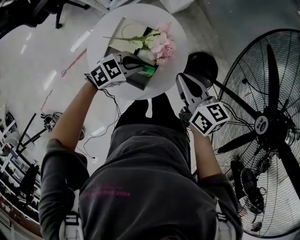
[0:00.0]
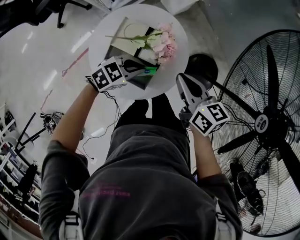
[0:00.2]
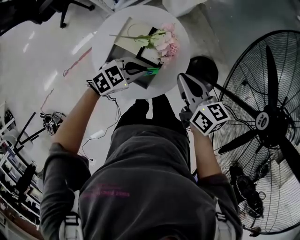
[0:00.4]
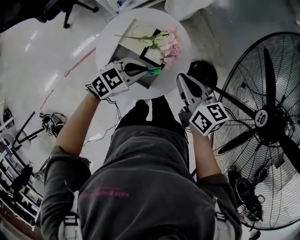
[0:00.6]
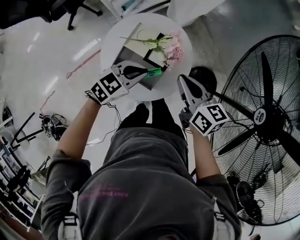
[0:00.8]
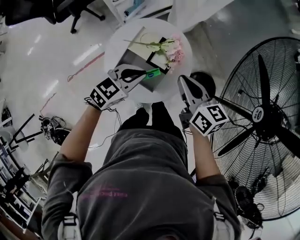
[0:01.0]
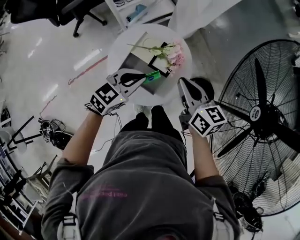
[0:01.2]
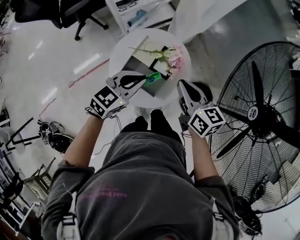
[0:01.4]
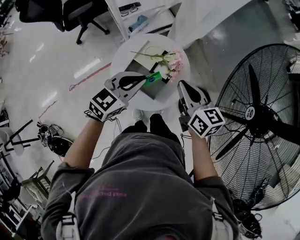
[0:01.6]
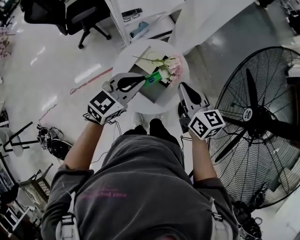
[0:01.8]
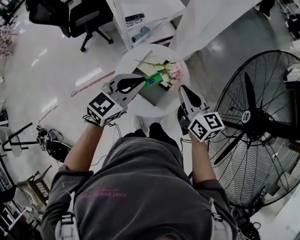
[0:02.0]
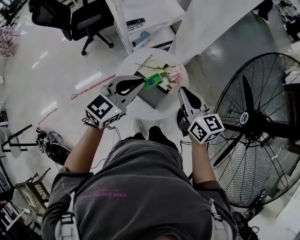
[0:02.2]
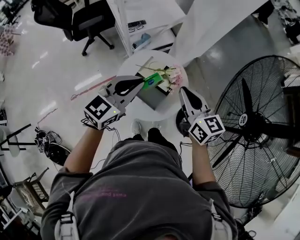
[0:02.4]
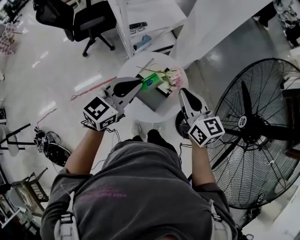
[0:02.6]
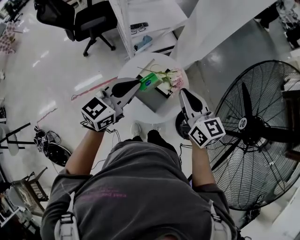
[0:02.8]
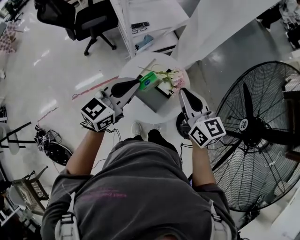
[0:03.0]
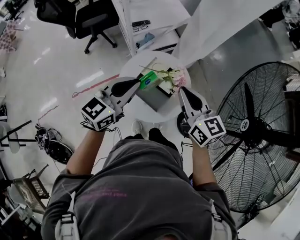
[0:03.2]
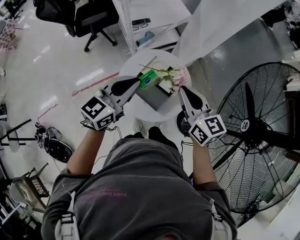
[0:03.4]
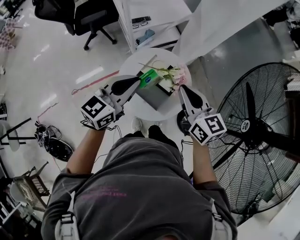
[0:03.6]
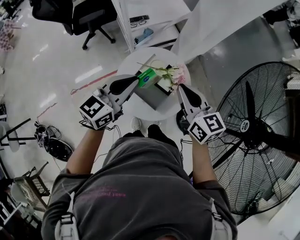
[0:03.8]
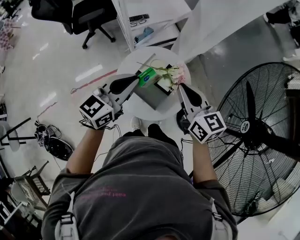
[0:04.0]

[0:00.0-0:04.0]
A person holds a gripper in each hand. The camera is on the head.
0:00.0 to 0:01.4: The right gripper goes about 10 cm upward. Meanwhile the left gripper moves upward, about 20 cm, and rotates approximately 40 degrees.
0:01.4 to 0:02.6: The grippers both shift upward by some 10 cm. The left gripper changes its angle by roughly 20 degrees.
0:02.6 to 0:04.0: The grippers make only small movements.

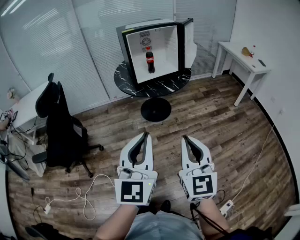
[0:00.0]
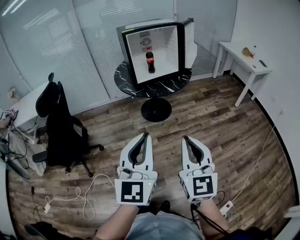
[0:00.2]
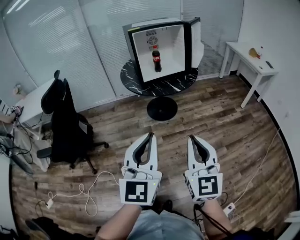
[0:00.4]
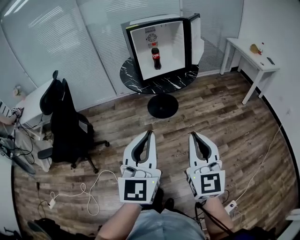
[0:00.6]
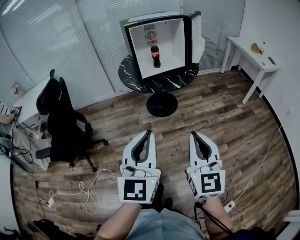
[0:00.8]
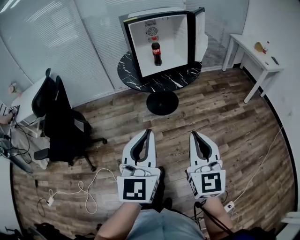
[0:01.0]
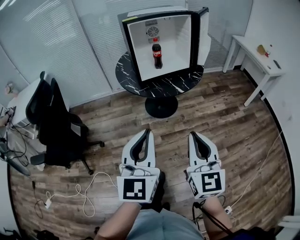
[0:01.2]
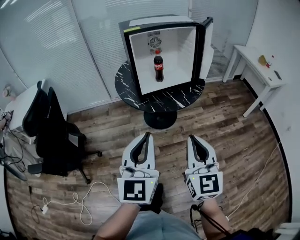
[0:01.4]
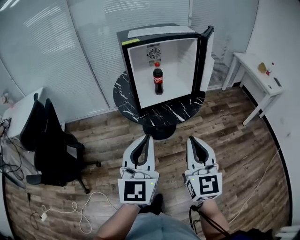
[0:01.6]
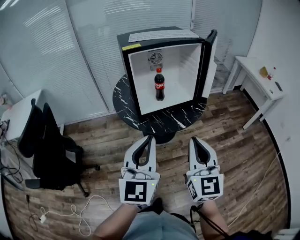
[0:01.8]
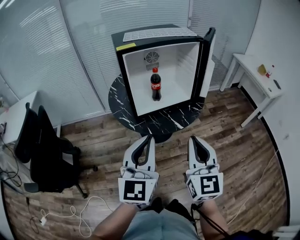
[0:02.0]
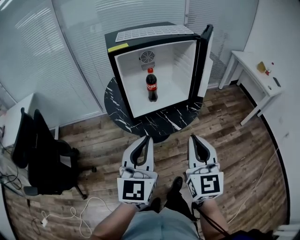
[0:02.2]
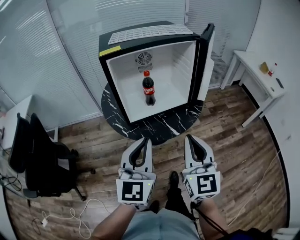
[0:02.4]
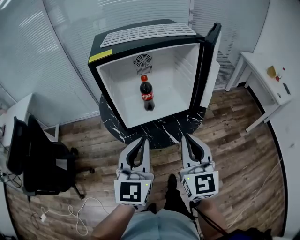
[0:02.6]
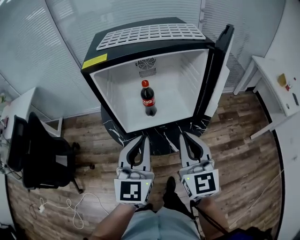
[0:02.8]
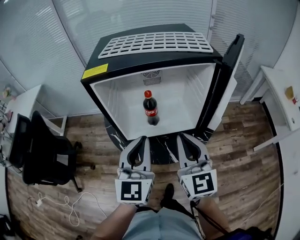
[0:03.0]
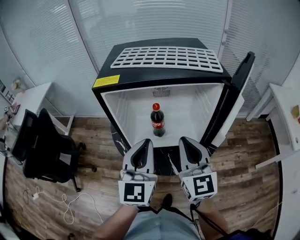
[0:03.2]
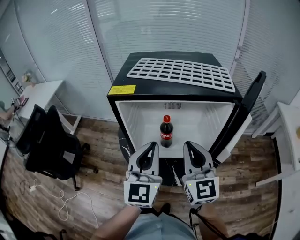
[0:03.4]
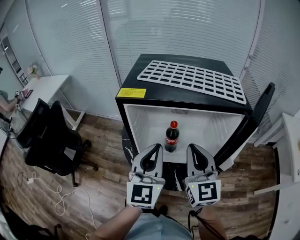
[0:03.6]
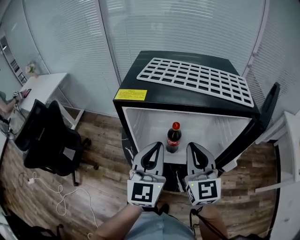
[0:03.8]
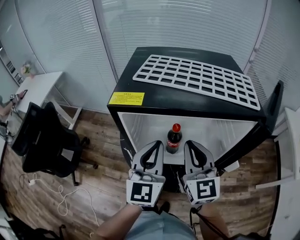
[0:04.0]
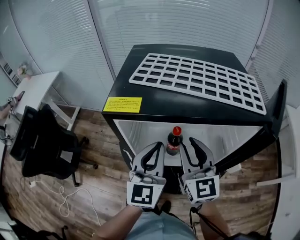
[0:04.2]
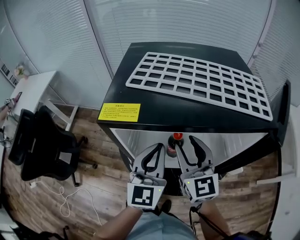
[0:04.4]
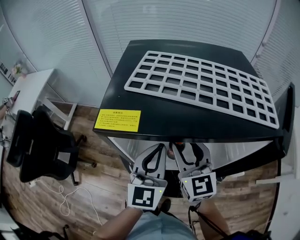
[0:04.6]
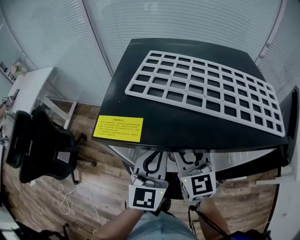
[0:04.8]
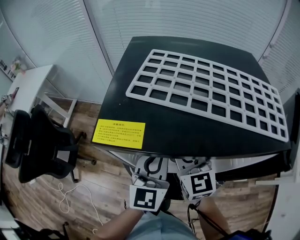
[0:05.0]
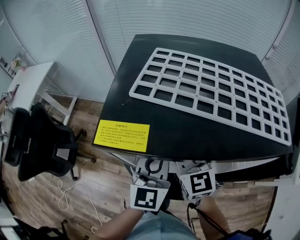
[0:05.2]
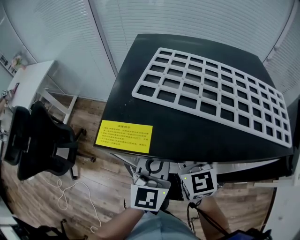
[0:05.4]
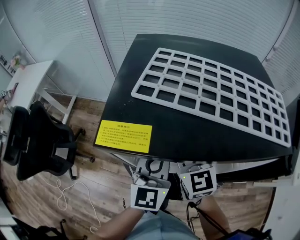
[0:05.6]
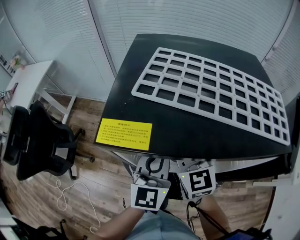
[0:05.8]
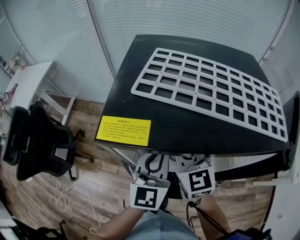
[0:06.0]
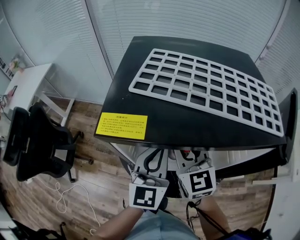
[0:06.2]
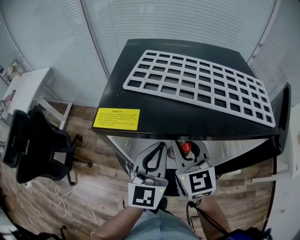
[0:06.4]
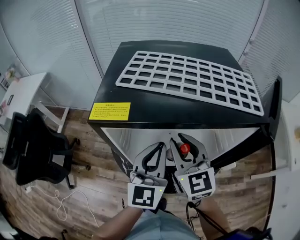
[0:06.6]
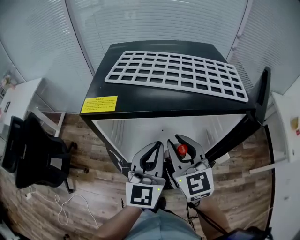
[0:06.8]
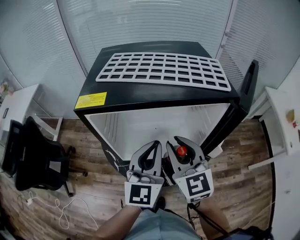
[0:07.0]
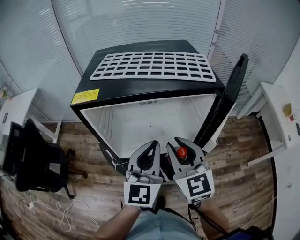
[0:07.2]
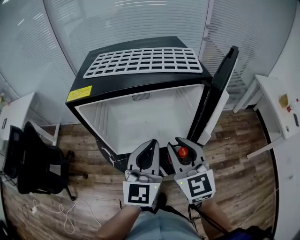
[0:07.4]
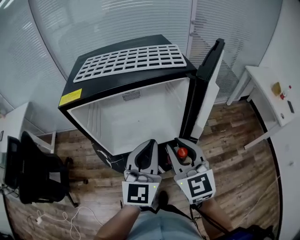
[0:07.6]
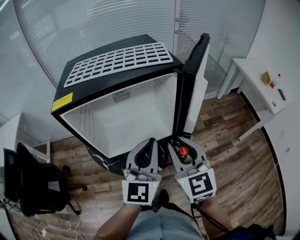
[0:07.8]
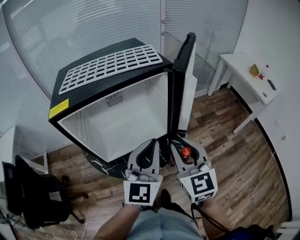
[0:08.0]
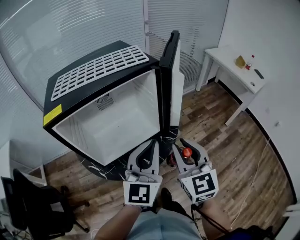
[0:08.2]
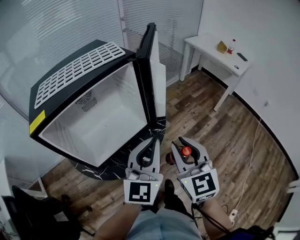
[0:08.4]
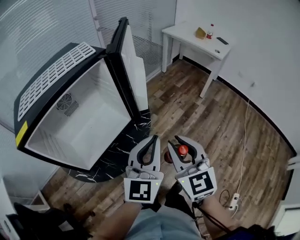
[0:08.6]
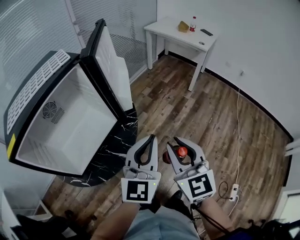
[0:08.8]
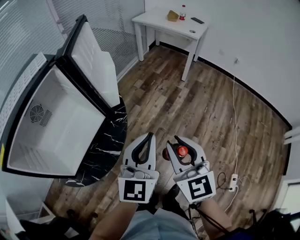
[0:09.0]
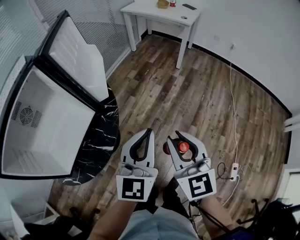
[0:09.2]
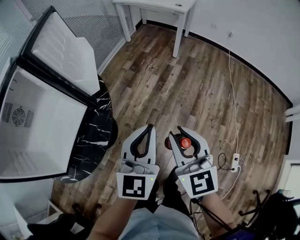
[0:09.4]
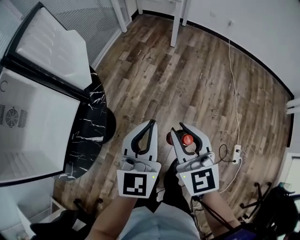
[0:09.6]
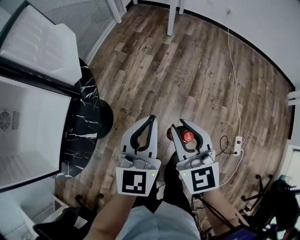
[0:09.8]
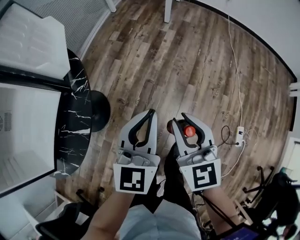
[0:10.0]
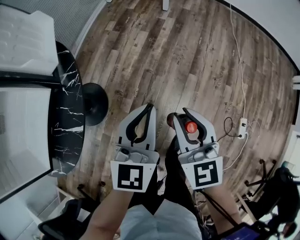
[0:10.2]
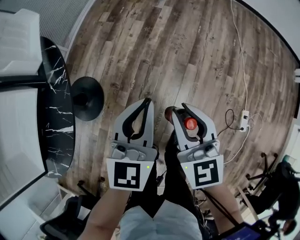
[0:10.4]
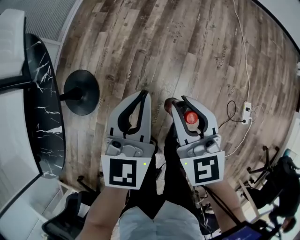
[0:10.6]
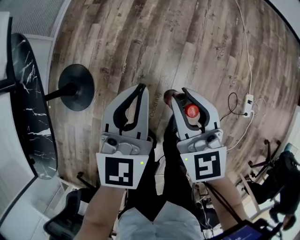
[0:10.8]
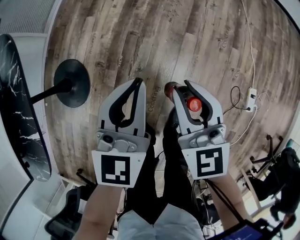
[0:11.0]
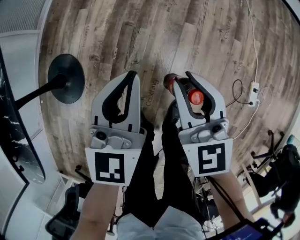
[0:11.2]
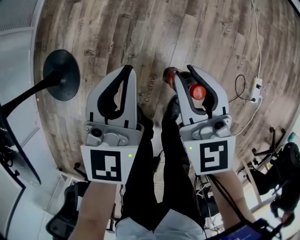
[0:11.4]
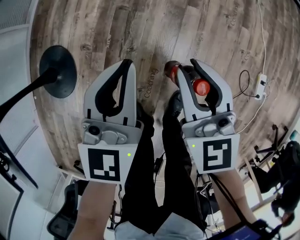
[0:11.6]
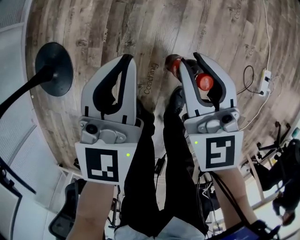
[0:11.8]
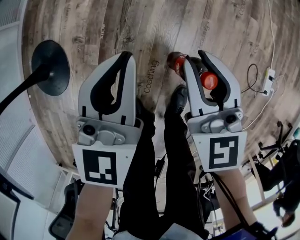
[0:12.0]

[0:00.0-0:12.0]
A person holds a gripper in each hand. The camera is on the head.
0:00.0 to 0:01.6: Both grippers travel together forward, roughly 30 cm.
0:01.6 to 0:03.0: The grippers both shift forward by about 30 cm.
0:03.0 to 0:04.4: Both grippers travel together forward, approximately 15 cm. The right gripper opens up.
0:04.4 to 0:06.0: The right gripper travels forward by about 5 cm.
0:06.0 to 0:07.6: Both grippers move backward and to the right, approximately 25 cm.
0:07.6 to 0:09.0: The right gripper ends up roughly 30 cm from where it was, and changes its angle by some 50 degrees. The left gripper changes place by approximately 25 cm, and rotates roughly 50 degrees.
0:09.0 to 0:10.4: The grippers both shift downward and to the right by approximately 30 cm. The left gripper rotates about 20 degrees.
0:10.4 to 0:12.0: The two grippers go about 35 cm downward.

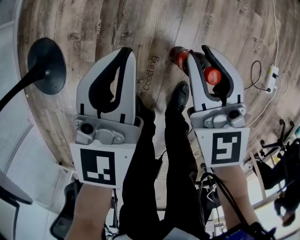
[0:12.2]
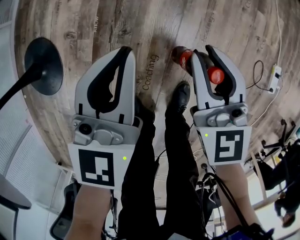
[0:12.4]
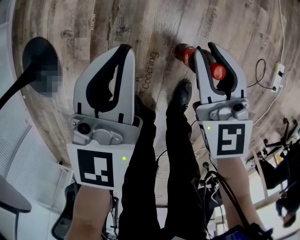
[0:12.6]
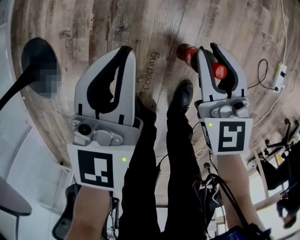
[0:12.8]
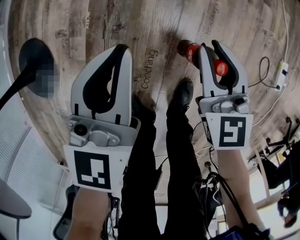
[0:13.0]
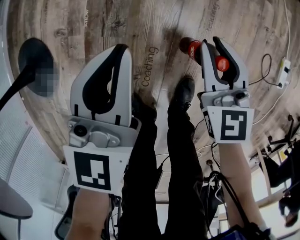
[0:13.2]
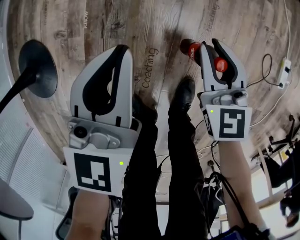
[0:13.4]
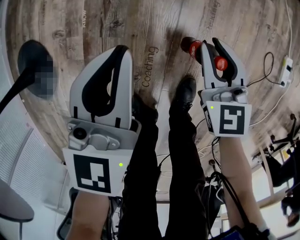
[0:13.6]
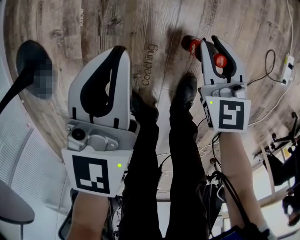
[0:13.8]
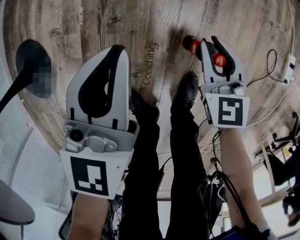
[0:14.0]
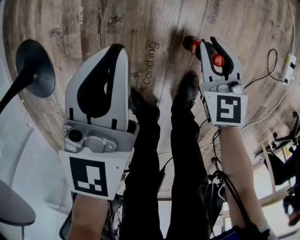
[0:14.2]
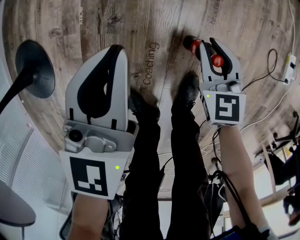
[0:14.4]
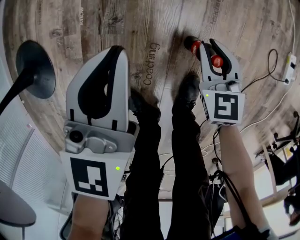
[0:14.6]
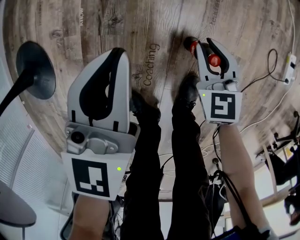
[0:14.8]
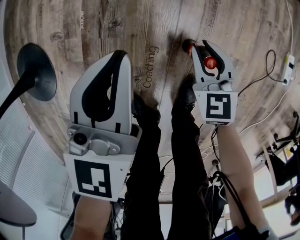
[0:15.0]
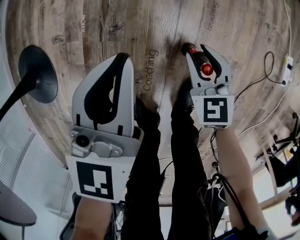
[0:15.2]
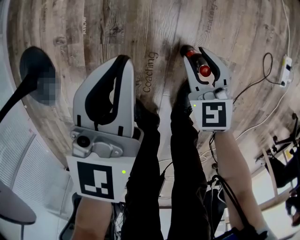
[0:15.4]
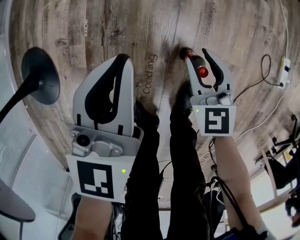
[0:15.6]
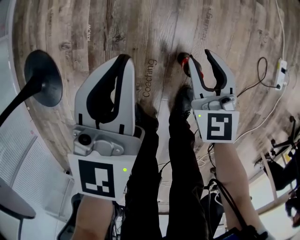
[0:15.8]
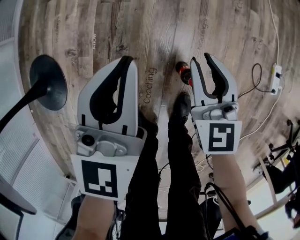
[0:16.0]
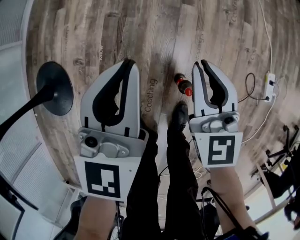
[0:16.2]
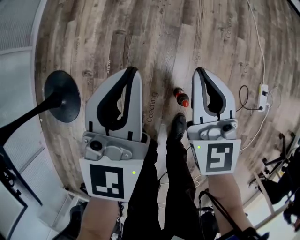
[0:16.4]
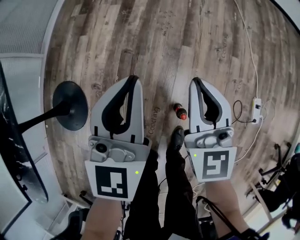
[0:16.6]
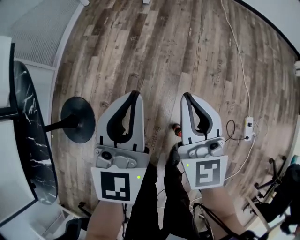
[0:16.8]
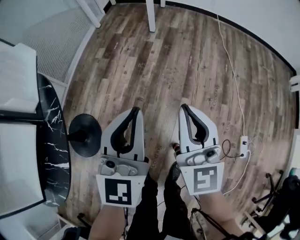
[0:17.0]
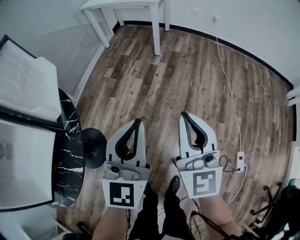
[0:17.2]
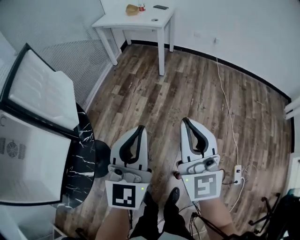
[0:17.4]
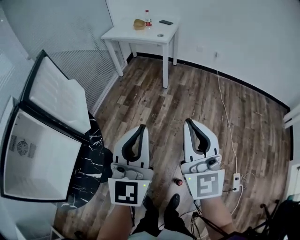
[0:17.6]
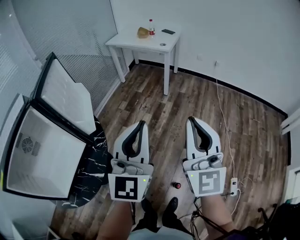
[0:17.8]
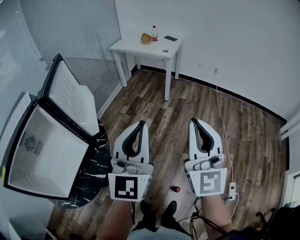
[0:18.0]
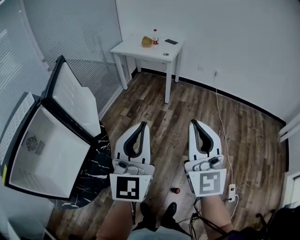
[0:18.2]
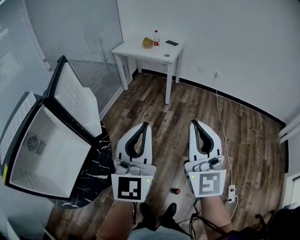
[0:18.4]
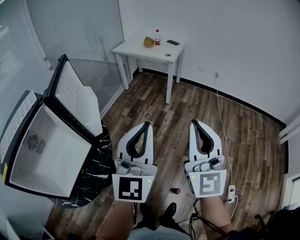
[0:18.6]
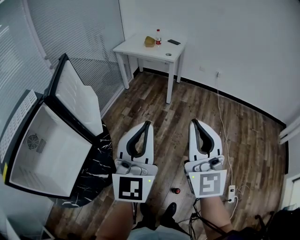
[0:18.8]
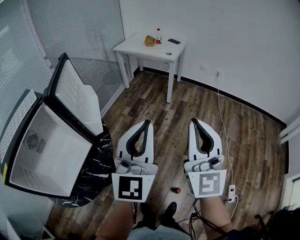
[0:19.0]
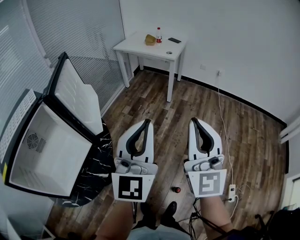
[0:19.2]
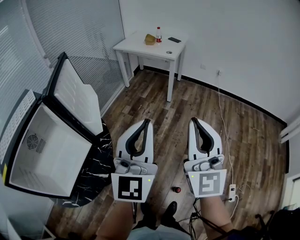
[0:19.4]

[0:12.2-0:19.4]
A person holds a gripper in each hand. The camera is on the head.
0:12.2 to 0:13.6: The right gripper goes roughly 15 cm downward. The left gripper goes some 10 cm downward.
0:13.6 to 0:15.0: The right gripper moves downward, roughly 5 cm.
0:15.0 to 0:16.6: The two grippers go approximately 35 cm upward. The left gripper rotates some 20 degrees. The right gripper points its fingers approximately 30 degrees further upward, and closes.
0:16.6 to 0:18.0: The grippers both shift upward by roughly 60 cm. The right gripper turns by approximately 30 degrees; the left gripper swivels some 30 degrees.
0:18.0 to 0:19.4: The grippers move only a little.
